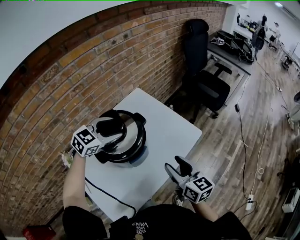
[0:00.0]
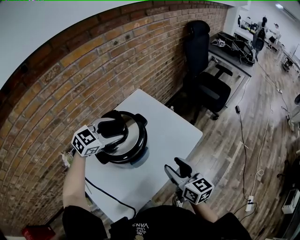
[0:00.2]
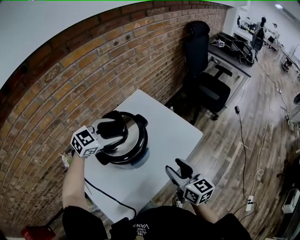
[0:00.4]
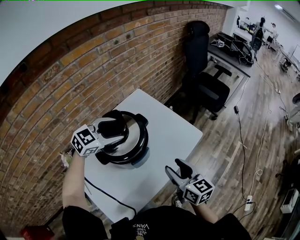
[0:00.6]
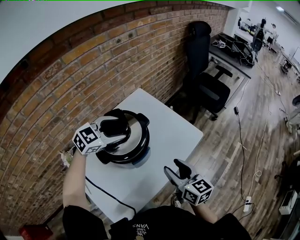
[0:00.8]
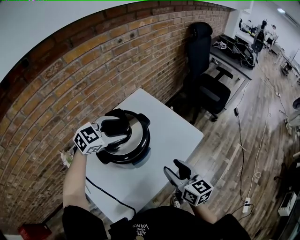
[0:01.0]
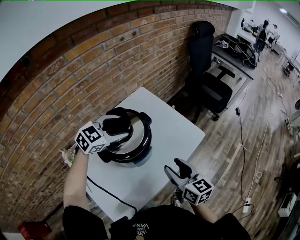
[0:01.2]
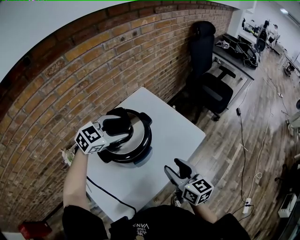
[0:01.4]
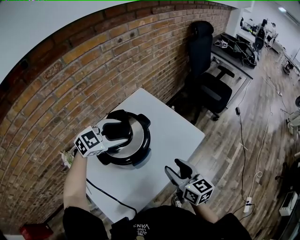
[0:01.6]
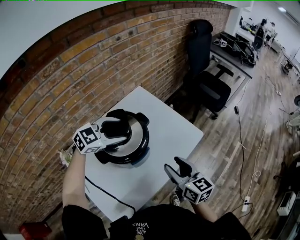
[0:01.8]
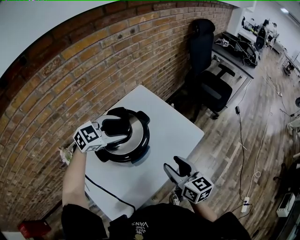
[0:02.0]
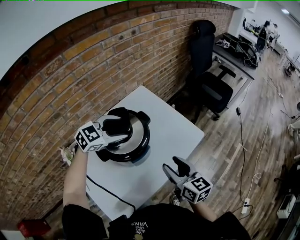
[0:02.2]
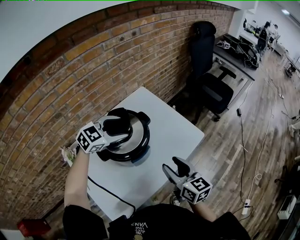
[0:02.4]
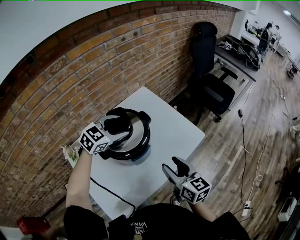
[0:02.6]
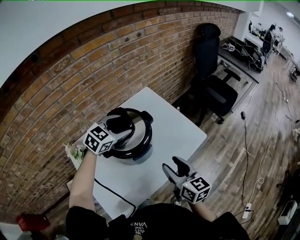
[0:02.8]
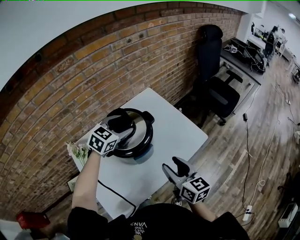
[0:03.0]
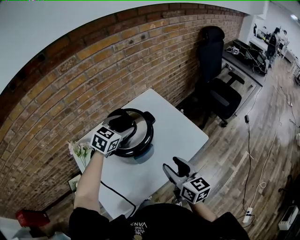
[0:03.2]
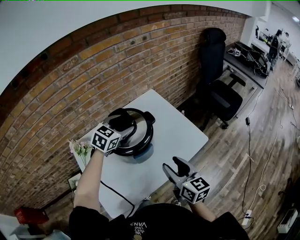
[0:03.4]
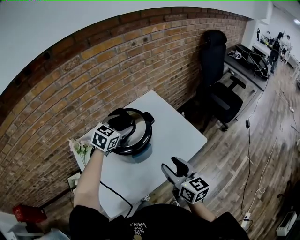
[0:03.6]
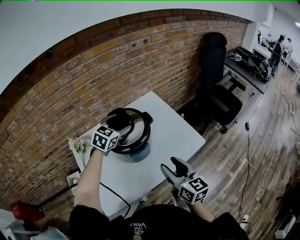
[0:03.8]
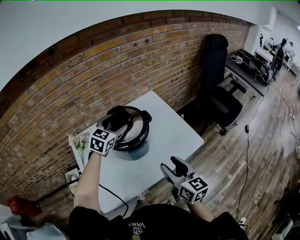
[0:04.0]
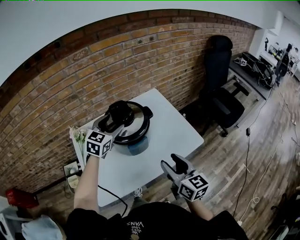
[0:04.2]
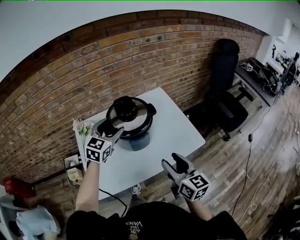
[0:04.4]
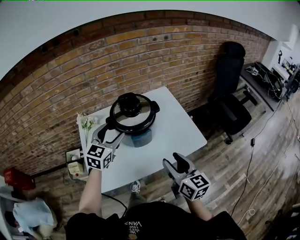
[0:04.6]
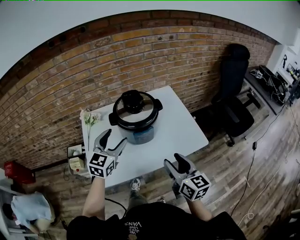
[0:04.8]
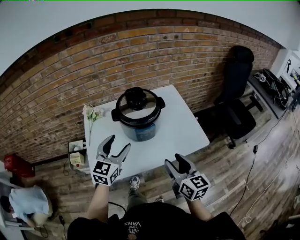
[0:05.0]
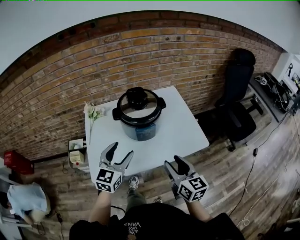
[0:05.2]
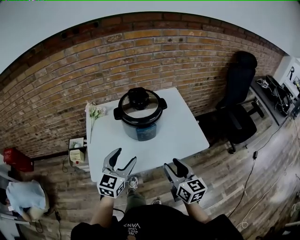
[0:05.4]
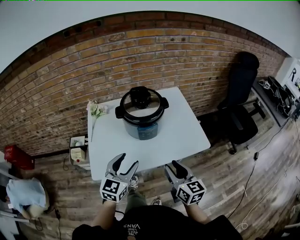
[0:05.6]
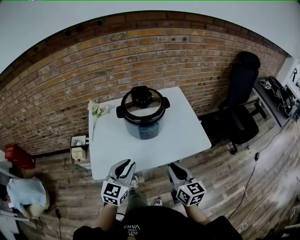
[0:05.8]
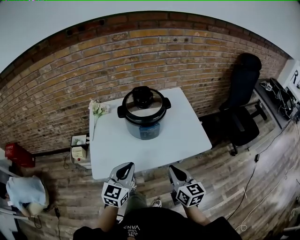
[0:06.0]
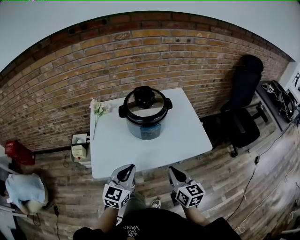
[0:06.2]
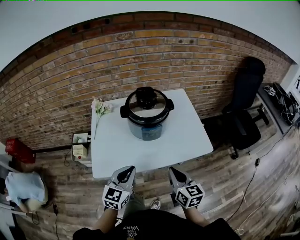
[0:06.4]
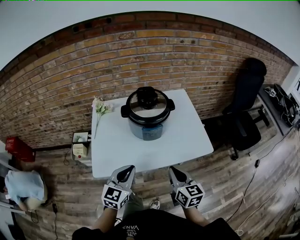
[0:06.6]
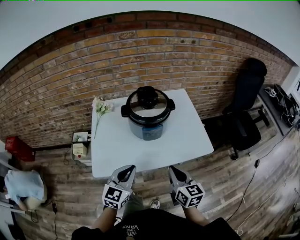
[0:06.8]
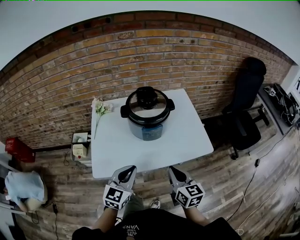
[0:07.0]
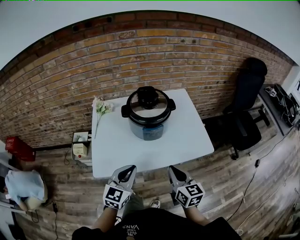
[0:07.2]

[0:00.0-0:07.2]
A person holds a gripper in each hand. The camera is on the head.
0:00.0 to 0:02.8: The grippers move only a little.
0:02.8 to 0:04.4: The right gripper moves approximately 5 cm; the left gripper is displaced backward and to the left by about 10 cm, and swivels approximately 40 degrees.
0:04.4 to 0:05.8: The left gripper shifts some 25 cm backward, and closes its fingers. Meanwhile the right gripper shifts some 10 cm downward and backward, and closes.
0:05.8 to 0:07.2: The grippers stay close to where they were, moving slightly.

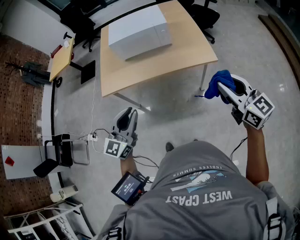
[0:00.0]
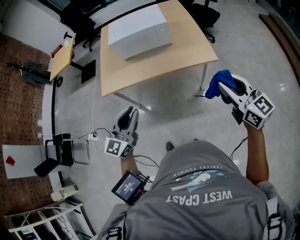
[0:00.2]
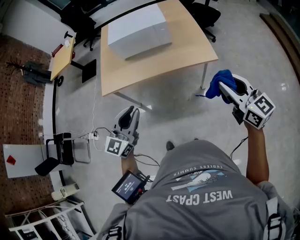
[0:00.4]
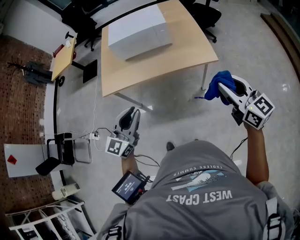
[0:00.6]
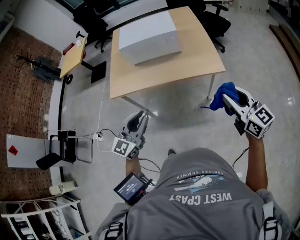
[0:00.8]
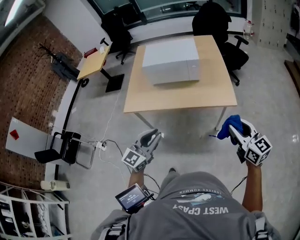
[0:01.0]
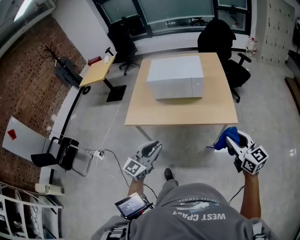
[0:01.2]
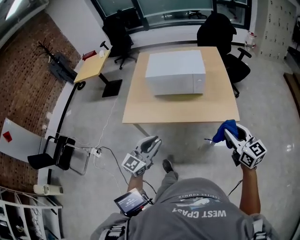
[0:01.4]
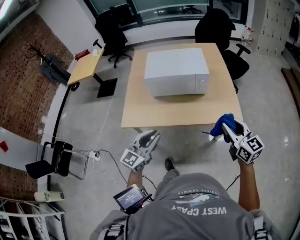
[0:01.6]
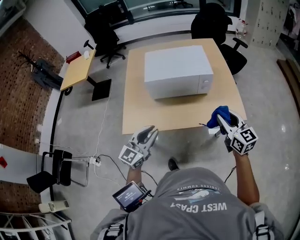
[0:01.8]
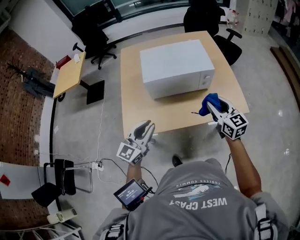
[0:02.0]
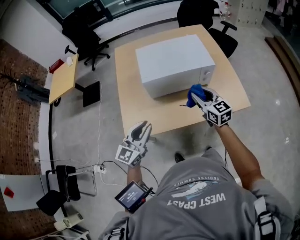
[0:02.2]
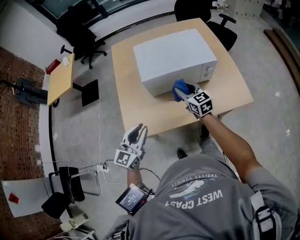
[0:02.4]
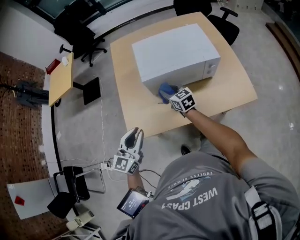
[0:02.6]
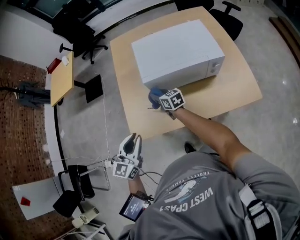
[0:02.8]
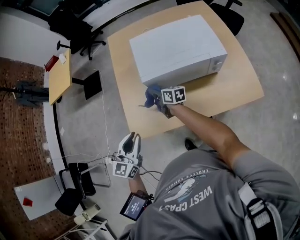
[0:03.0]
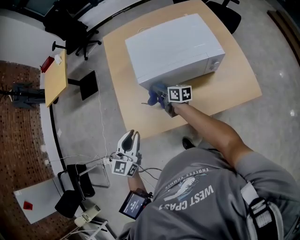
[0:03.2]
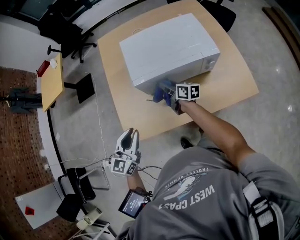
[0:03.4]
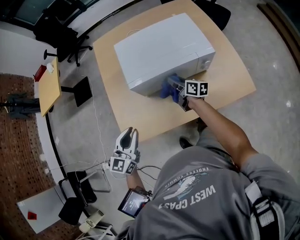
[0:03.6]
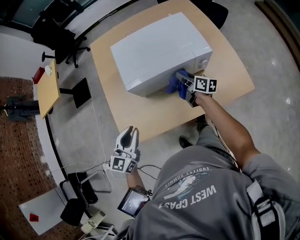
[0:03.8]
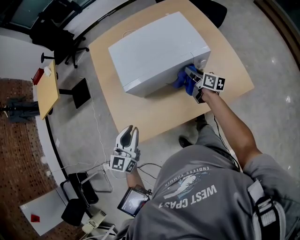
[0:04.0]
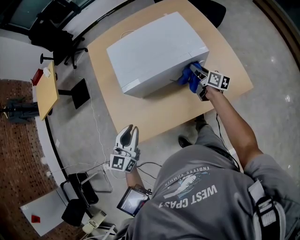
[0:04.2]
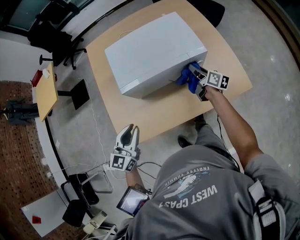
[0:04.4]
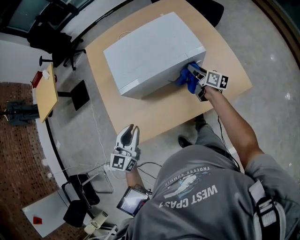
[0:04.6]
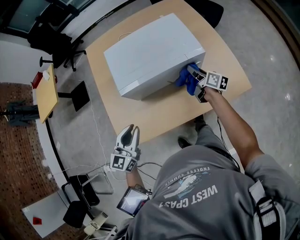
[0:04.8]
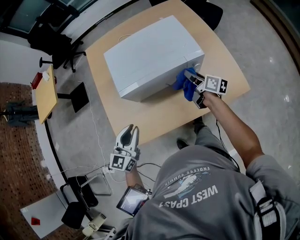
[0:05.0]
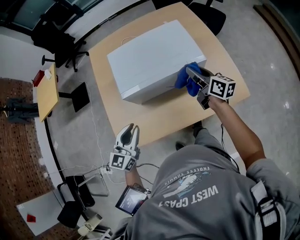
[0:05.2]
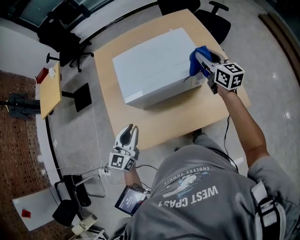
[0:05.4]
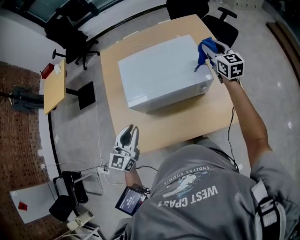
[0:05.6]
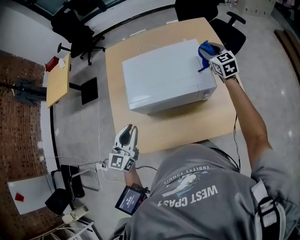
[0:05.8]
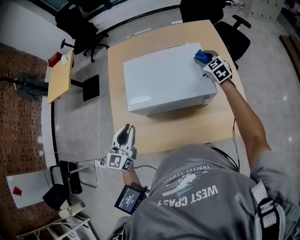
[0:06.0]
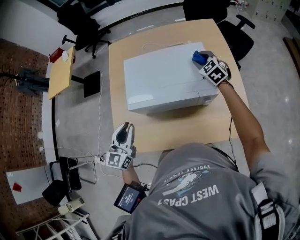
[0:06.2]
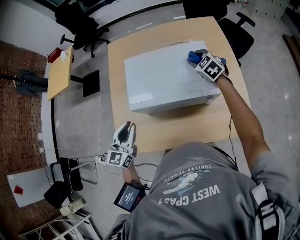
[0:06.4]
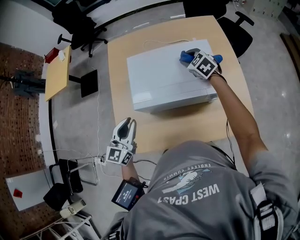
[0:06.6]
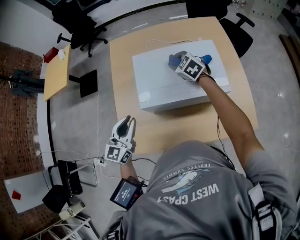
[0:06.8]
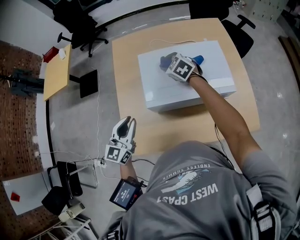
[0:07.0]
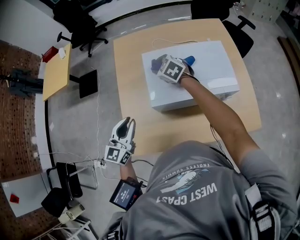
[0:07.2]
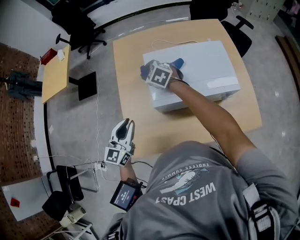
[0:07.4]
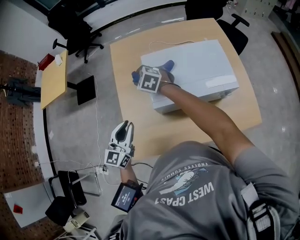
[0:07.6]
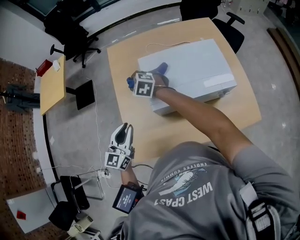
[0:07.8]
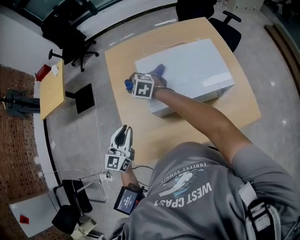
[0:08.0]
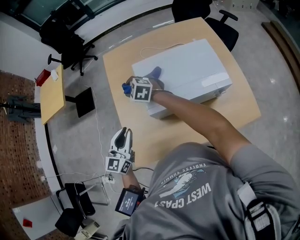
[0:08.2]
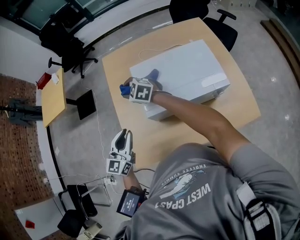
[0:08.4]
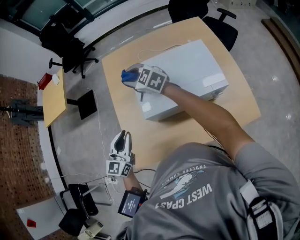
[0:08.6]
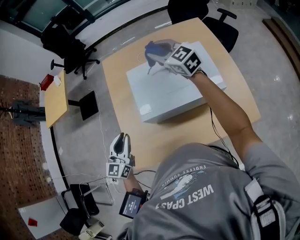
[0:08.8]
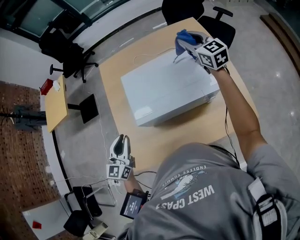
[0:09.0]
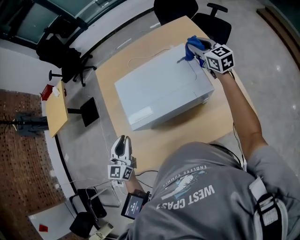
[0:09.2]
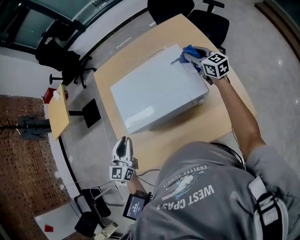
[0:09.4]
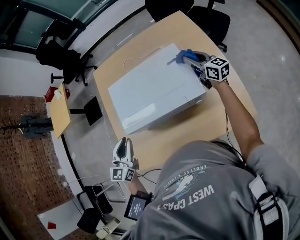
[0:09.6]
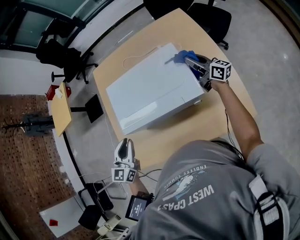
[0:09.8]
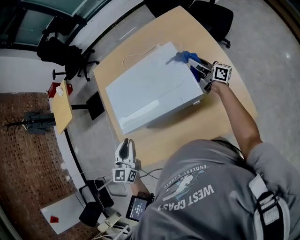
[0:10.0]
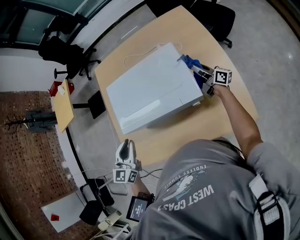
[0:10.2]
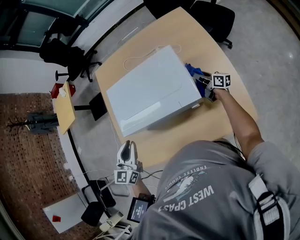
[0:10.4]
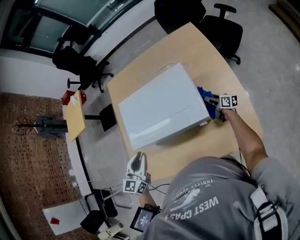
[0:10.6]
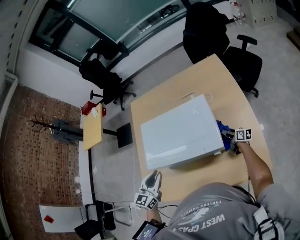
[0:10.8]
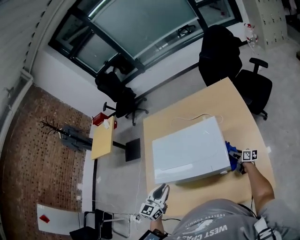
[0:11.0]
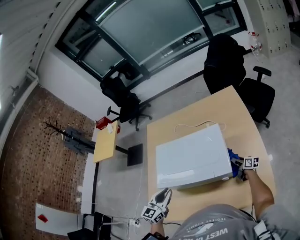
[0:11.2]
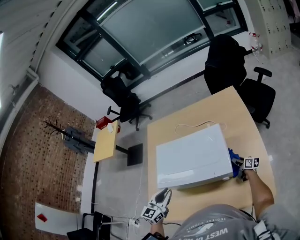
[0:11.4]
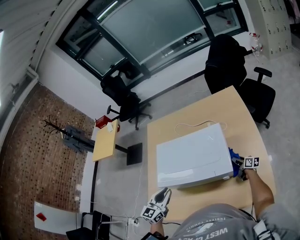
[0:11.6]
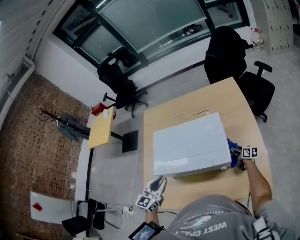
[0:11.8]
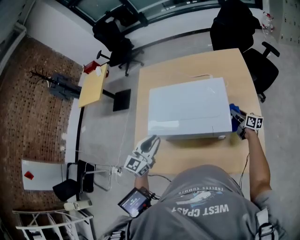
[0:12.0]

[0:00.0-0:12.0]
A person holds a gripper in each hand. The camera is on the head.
0:00.0 to 0:01.6: The right gripper is displaced forward and to the left by approximately 20 cm; the left gripper shifts about 15 cm forward.
0:01.6 to 0:03.0: The right gripper goes approximately 60 cm to the left, forward and downward, and twists approximately 40 degrees clockwise, seen from behind, while the left gripper goes roughly 30 cm to the left and forward.
0:03.0 to 0:04.4: The left gripper goes about 10 cm to the right and forward. Meanwhile the right gripper shifts roughly 35 cm to the right, and turns by some 30 degrees.
0:04.4 to 0:06.0: The right gripper travels forward and upward by approximately 25 cm, and rotates around the line of its fingers by some 70 degrees, counterclockwise from behind; the left gripper heads forward and upward, covering some 10 cm.
0:06.0 to 0:07.6: The left gripper moves to the left, about 15 cm; the right gripper goes some 50 cm to the left, and swivels some 30 degrees.
0:07.6 to 0:09.0: The right gripper travels to the right by approximately 40 cm, and angles its fingers upward, by approximately 30 degrees. Meanwhile the left gripper shifts about 5 cm to the right.
0:09.0 to 0:10.4: The right gripper shifts approximately 35 cm downward and to the right, and rotates around the line of its fingers by approximately 60 degrees, clockwise from behind. Meanwhile the left gripper moves to the right, roughly 15 cm.
0:10.4 to 0:12.0: The right gripper moves some 5 cm downward and comes back.

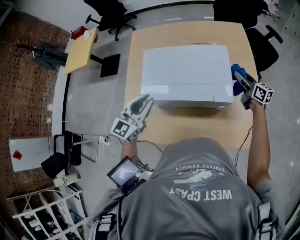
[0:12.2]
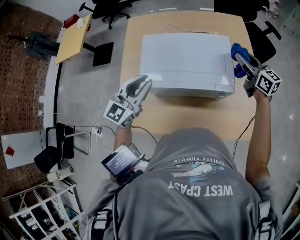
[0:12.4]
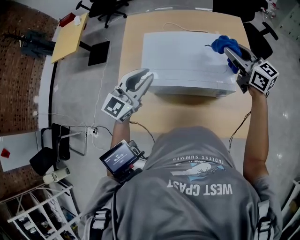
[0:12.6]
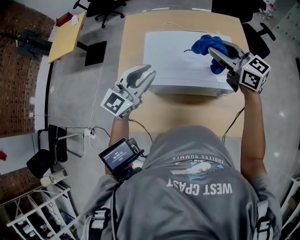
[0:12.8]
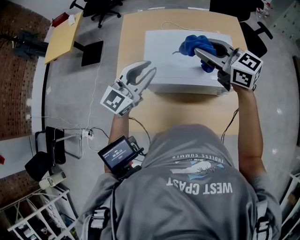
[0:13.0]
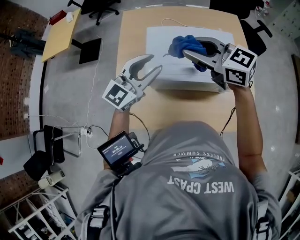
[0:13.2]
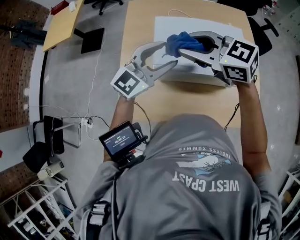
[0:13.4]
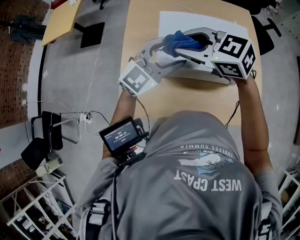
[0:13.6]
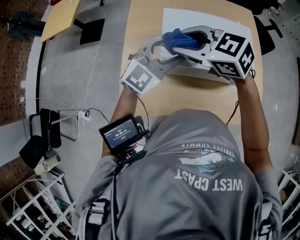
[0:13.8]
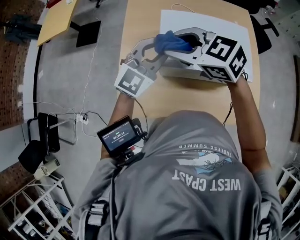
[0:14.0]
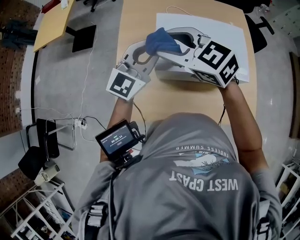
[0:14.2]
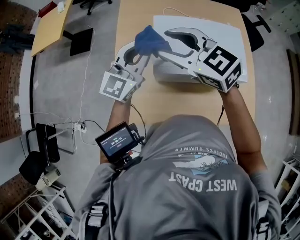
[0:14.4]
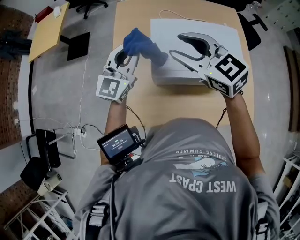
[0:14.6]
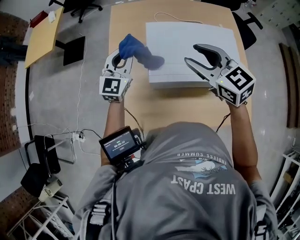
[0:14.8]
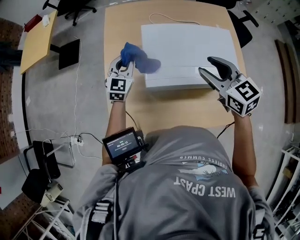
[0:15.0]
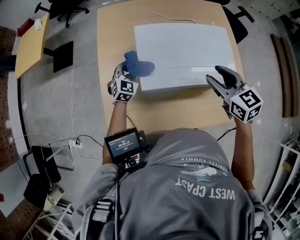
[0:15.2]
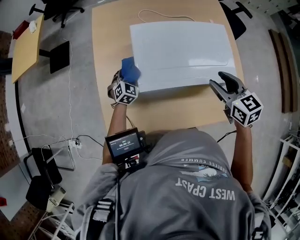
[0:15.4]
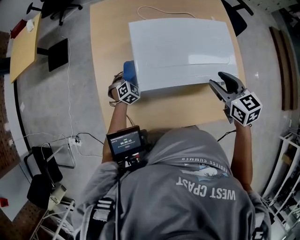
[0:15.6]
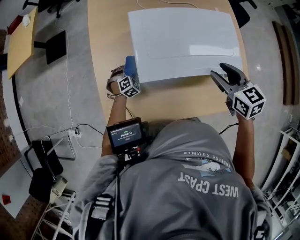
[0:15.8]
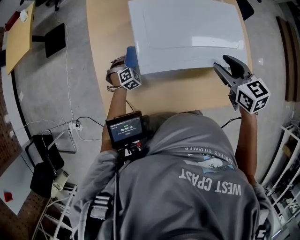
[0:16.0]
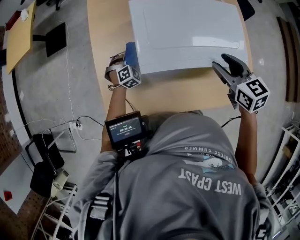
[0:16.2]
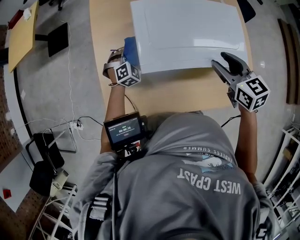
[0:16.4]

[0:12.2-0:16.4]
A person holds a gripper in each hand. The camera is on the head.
0:12.2 to 0:13.6: The left gripper changes its angle by about 30 degrees, and opens. The right gripper changes place by roughly 50 cm, and changes its angle by roughly 60 degrees.
0:13.6 to 0:15.0: The left gripper moves roughly 25 cm, rotates roughly 30 degrees, and closes. Meanwhile the right gripper ends up approximately 20 cm from where it was, and rotates some 40 degrees.
0:15.0 to 0:16.4: The left gripper shifts about 15 cm downward, and rotates approximately 50 degrees; the right gripper goes approximately 5 cm to the right and downward.
